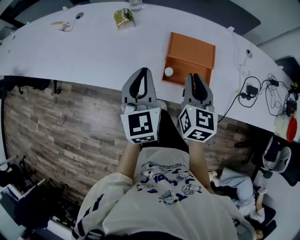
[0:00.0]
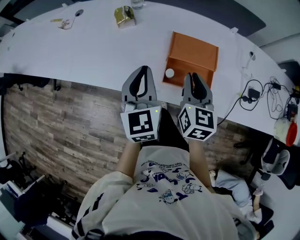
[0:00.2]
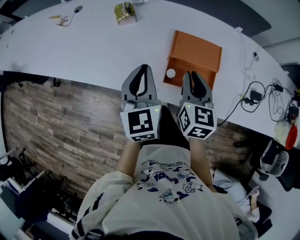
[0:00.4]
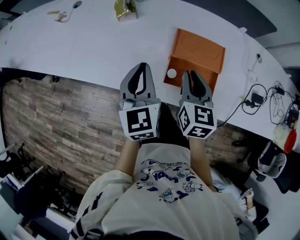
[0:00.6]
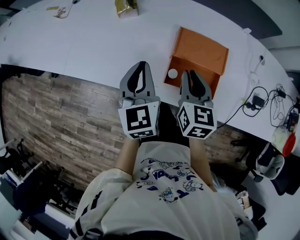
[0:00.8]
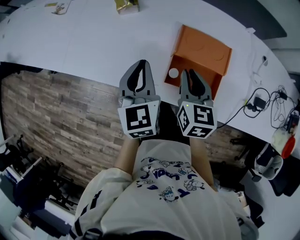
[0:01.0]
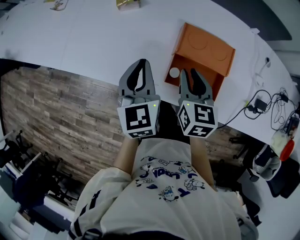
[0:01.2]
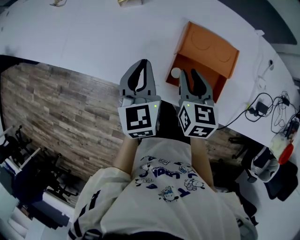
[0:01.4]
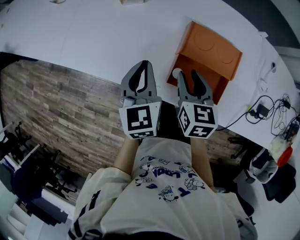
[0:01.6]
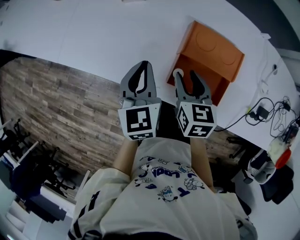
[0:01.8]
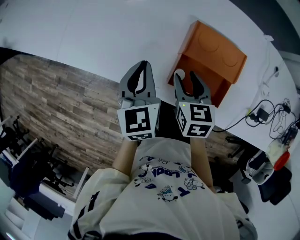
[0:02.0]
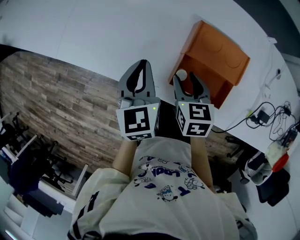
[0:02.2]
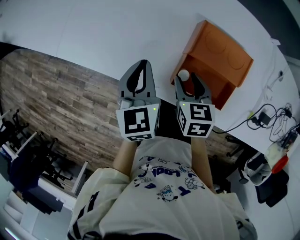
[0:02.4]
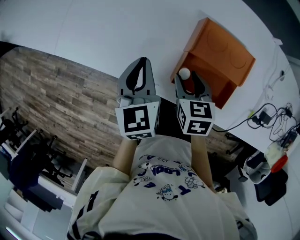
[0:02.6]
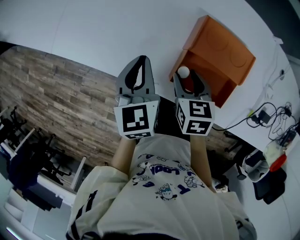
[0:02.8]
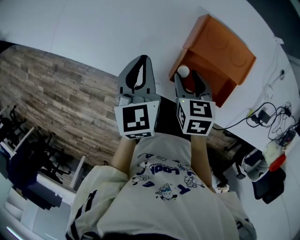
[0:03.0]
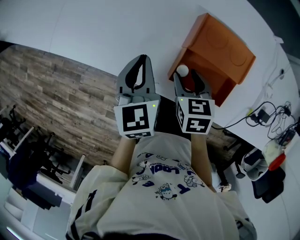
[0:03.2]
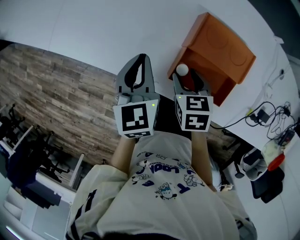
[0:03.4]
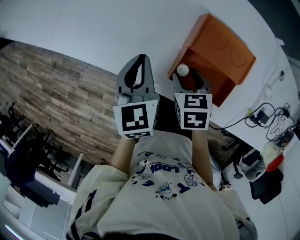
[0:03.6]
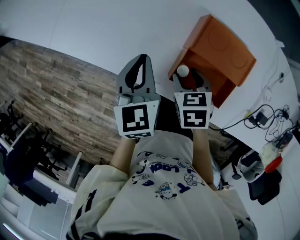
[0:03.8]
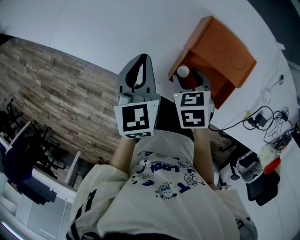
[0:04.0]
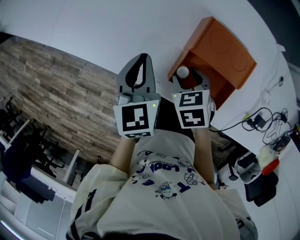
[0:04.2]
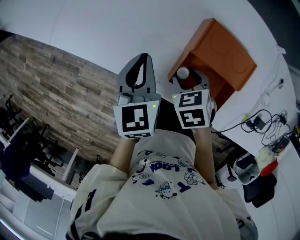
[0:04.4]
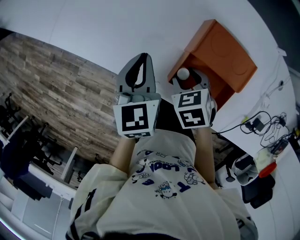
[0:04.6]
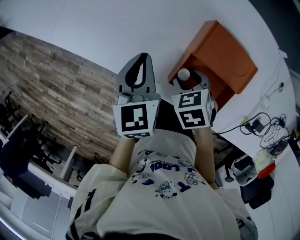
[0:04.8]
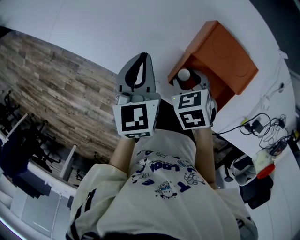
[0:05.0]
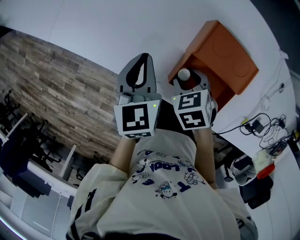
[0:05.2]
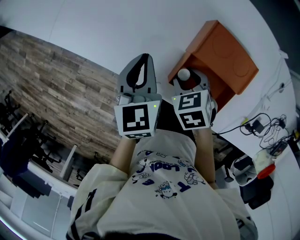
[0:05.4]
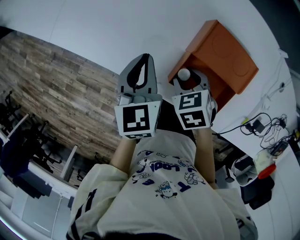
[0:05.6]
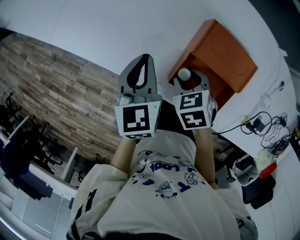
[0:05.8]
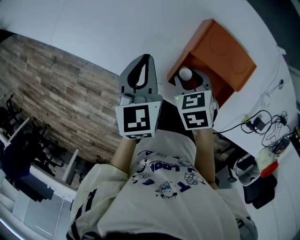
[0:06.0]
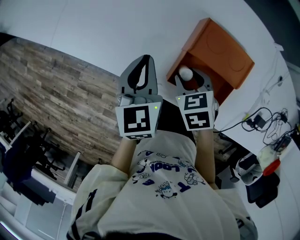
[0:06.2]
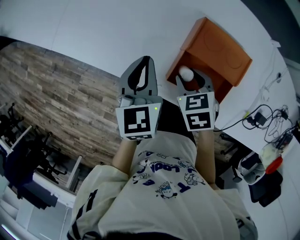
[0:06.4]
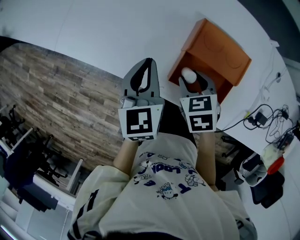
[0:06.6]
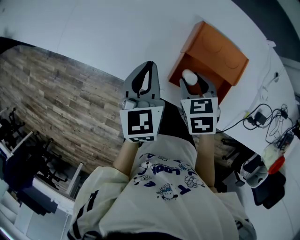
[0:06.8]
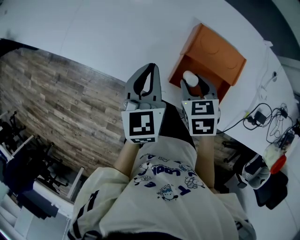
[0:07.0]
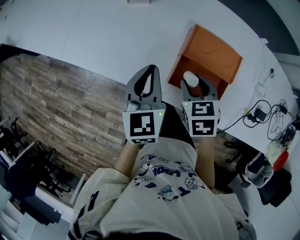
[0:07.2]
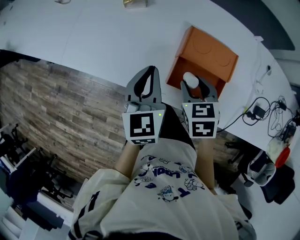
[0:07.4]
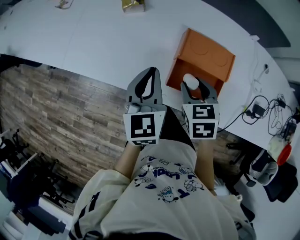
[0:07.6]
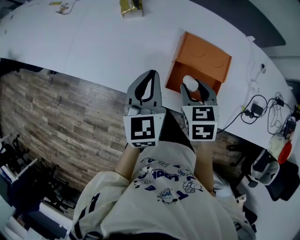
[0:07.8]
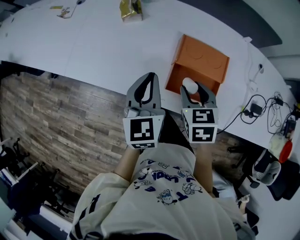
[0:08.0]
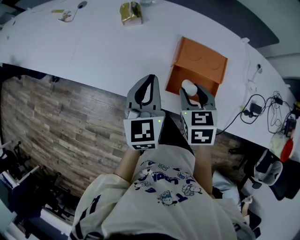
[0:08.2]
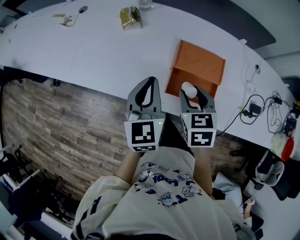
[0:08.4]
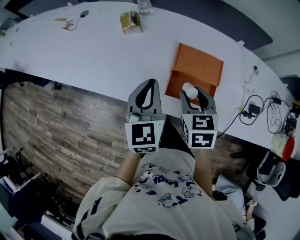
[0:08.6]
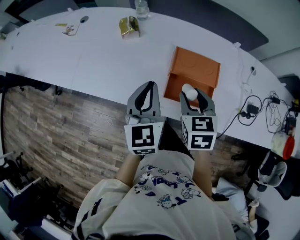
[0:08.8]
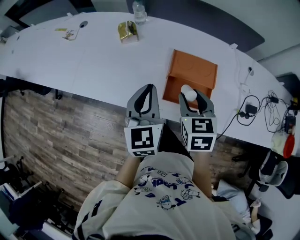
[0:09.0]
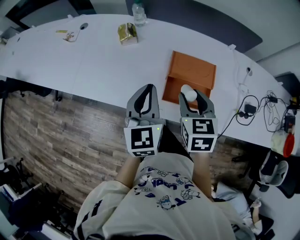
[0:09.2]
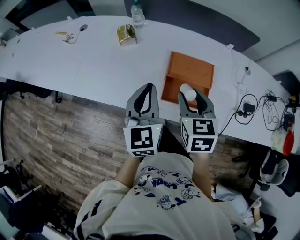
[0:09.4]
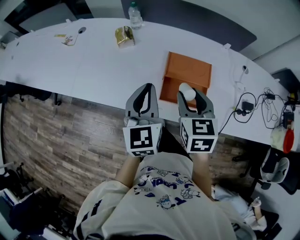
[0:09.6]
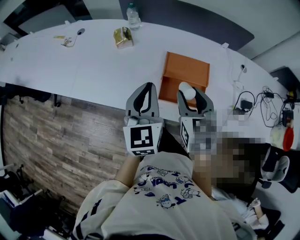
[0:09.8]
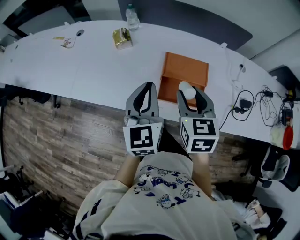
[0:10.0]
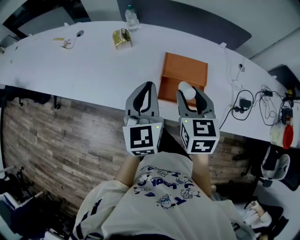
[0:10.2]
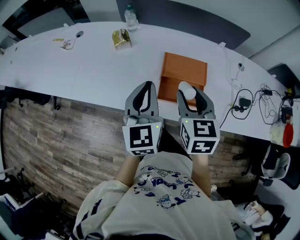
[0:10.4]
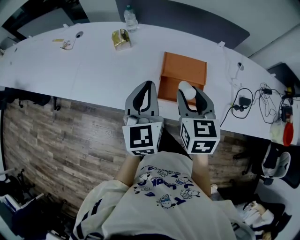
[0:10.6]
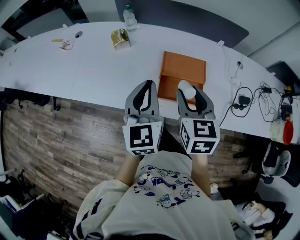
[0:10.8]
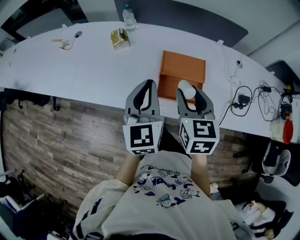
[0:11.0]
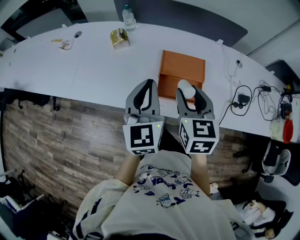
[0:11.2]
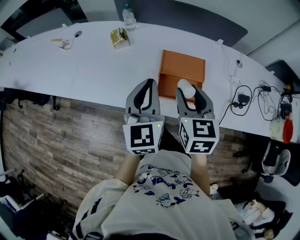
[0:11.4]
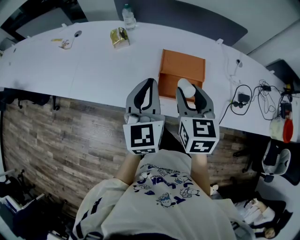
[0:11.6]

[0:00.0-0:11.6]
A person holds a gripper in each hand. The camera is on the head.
0:00.0 to 0:01.4: The two grippers go approximately 15 cm downward and forward. The right gripper turns by about 20 degrees.
0:01.4 to 0:02.8: The left gripper shifts roughly 5 cm downward, while the right gripper heads downward, covering approximately 10 cm, and opens.
0:02.8 to 0:04.4: The right gripper turns by approximately 30 degrees.
0:04.4 to 0:05.8: The grippers make only small movements.
0:05.8 to 0:07.2: The two grippers go approximately 5 cm upward. The right gripper changes its angle by approximately 20 degrees.
0:07.2 to 0:08.8: Both grippers move upward, about 10 cm. The right gripper turns by approximately 20 degrees.
0:08.8 to 0:10.2: The left gripper ends up approximately 5 cm from where it was; the right gripper is displaced upward by about 5 cm.
0:10.2 to 0:11.6: There are only small adjustments of the grippers.

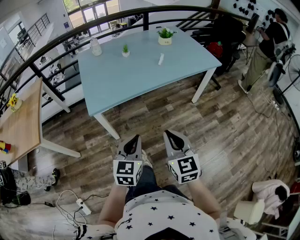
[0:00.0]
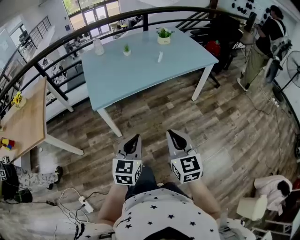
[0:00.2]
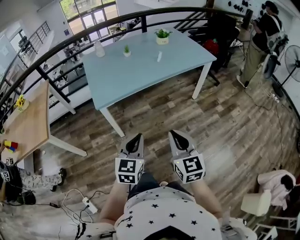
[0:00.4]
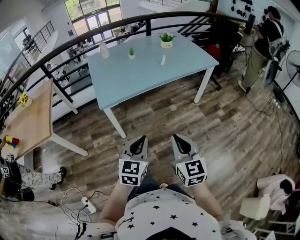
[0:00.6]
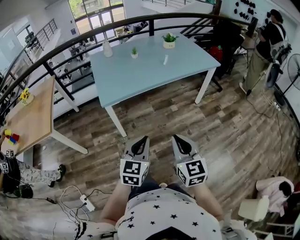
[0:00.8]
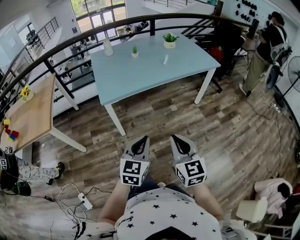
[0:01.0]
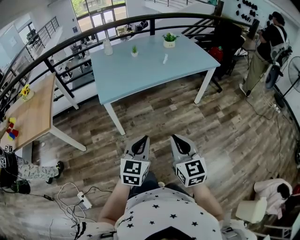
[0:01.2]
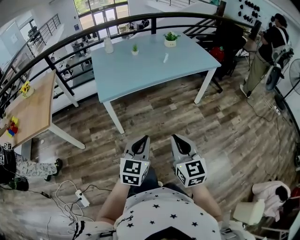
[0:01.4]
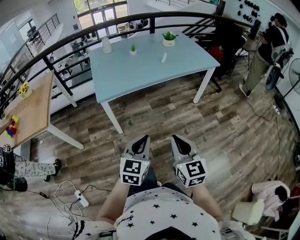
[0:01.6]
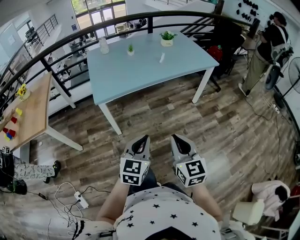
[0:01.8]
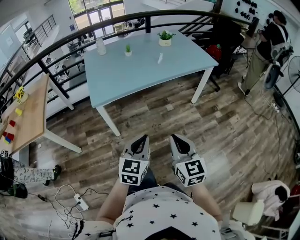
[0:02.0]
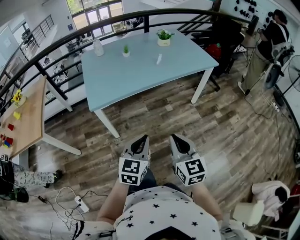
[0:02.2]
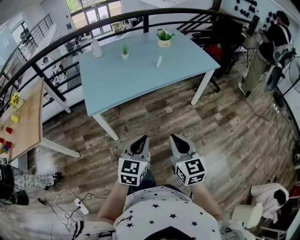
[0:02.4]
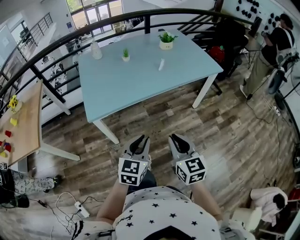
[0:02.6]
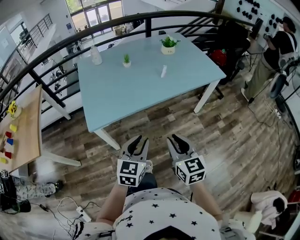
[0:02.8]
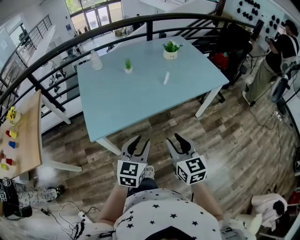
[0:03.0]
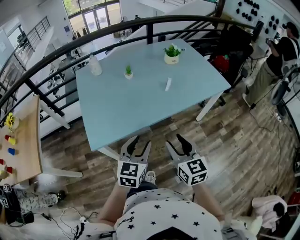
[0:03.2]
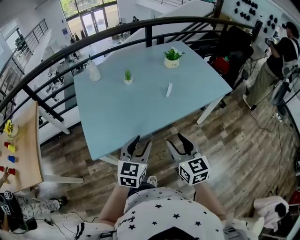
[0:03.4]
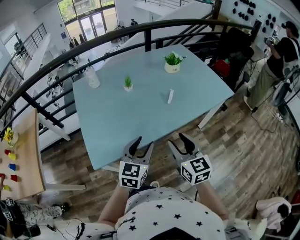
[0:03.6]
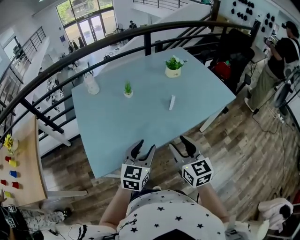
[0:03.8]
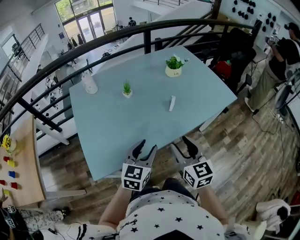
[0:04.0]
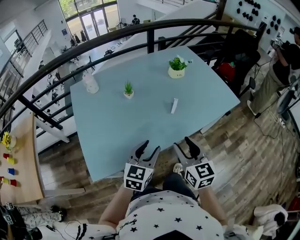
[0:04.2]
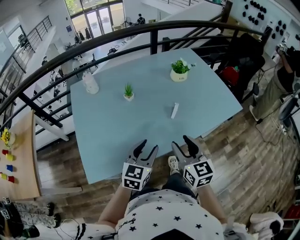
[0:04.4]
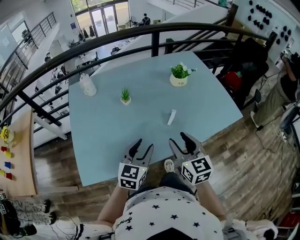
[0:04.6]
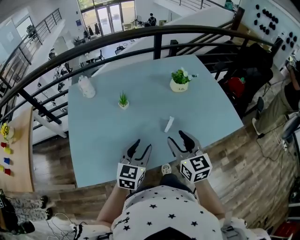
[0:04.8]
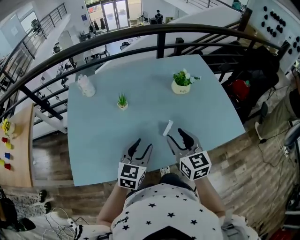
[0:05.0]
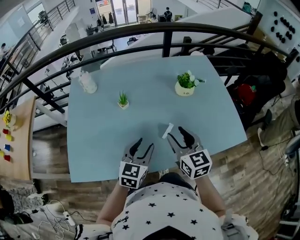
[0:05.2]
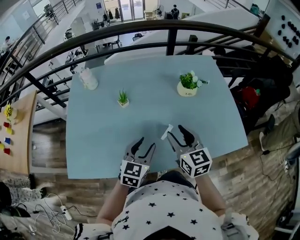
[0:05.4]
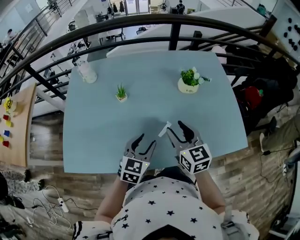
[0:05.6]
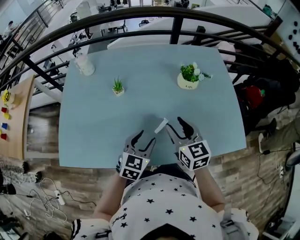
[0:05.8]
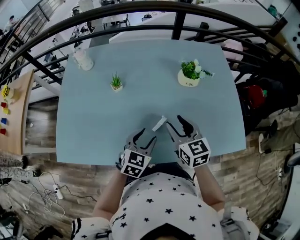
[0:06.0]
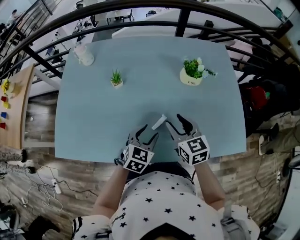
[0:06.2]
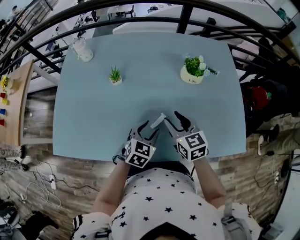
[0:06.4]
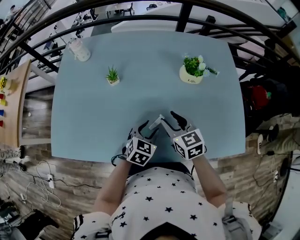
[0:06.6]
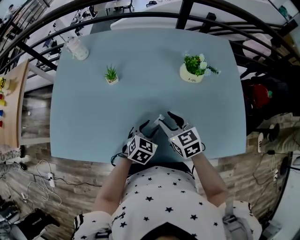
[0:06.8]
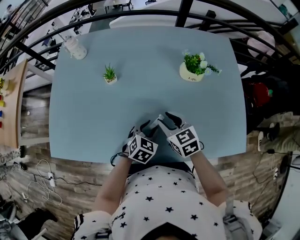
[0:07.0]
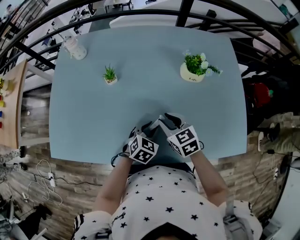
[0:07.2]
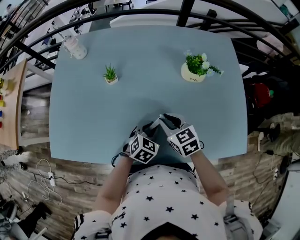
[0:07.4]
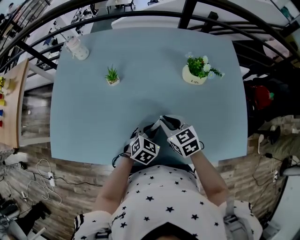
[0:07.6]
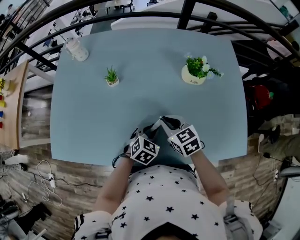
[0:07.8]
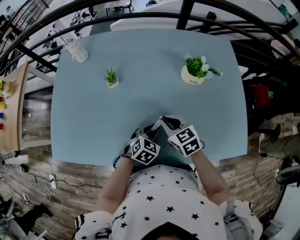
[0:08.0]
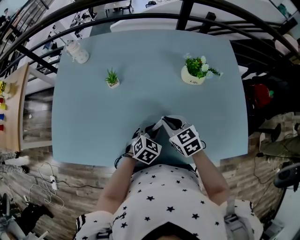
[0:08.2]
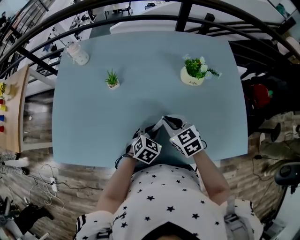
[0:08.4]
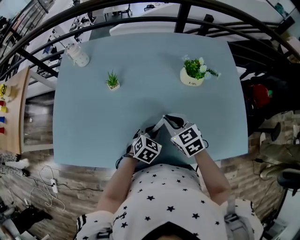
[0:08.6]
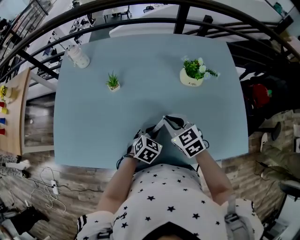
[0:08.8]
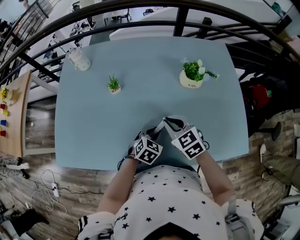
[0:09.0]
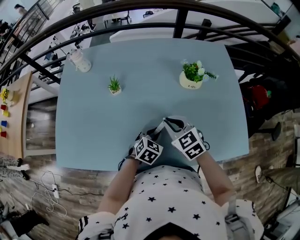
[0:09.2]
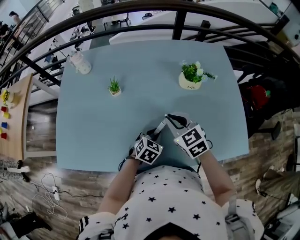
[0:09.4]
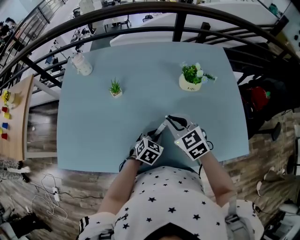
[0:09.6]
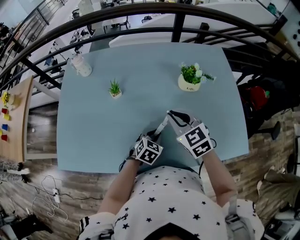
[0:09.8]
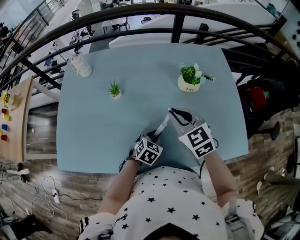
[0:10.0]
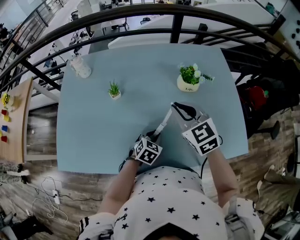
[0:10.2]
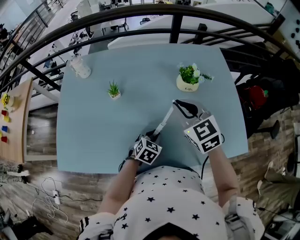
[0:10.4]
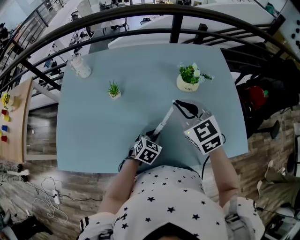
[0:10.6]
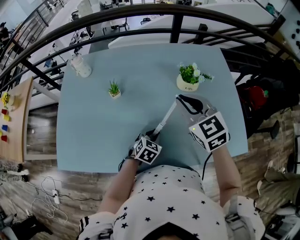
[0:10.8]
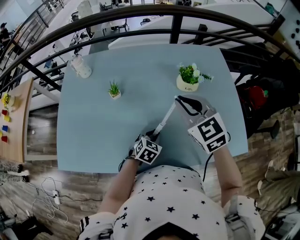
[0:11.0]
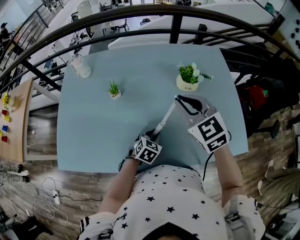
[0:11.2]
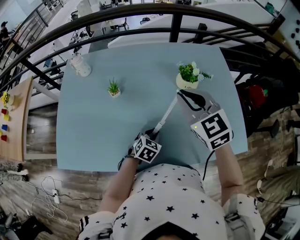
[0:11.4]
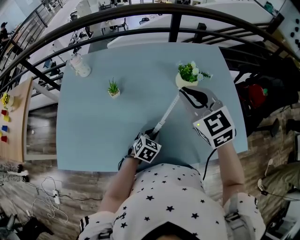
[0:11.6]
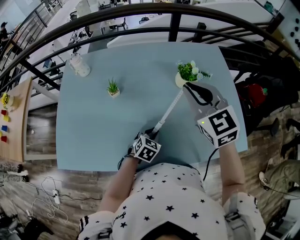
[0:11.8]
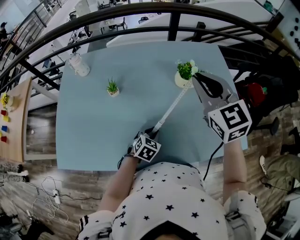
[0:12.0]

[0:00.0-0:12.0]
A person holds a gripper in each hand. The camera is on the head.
0:00.0 to 0:01.6: The two grippers go about 15 cm backward.
0:01.6 to 0:03.0: The two grippers go some 30 cm forward. The left gripper opens. The right gripper opens.
0:03.0 to 0:04.4: The two grippers go some 25 cm forward.
0:04.4 to 0:06.0: The right gripper shifts some 25 cm forward and to the right, and swivels about 30 degrees. Meanwhile the left gripper shifts some 25 cm forward, to the right and downward.
0:06.0 to 0:07.6: The two grippers go some 10 cm downward. The right gripper swivels some 20 degrees, and closes its fingers, while the left gripper closes.
0:07.6 to 0:09.0: The grippers stay close to where they were, moving slightly.
0:09.0 to 0:10.4: The right gripper heads upward, covering some 10 cm.
0:10.4 to 0:12.0: The right gripper goes roughly 10 cm upward.
